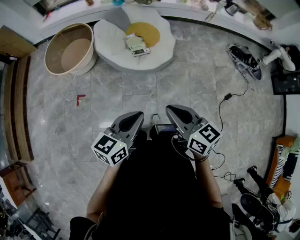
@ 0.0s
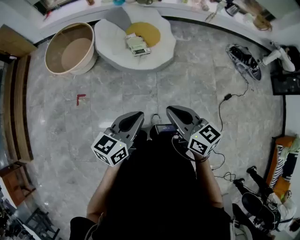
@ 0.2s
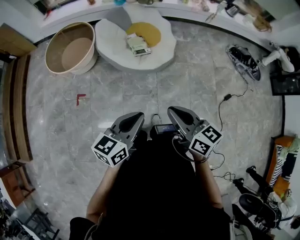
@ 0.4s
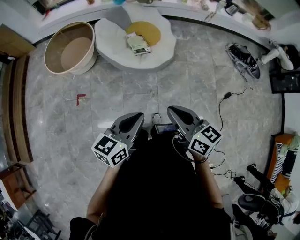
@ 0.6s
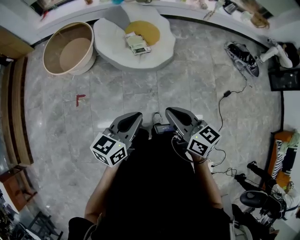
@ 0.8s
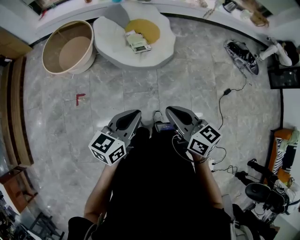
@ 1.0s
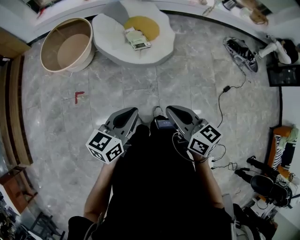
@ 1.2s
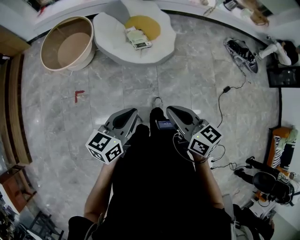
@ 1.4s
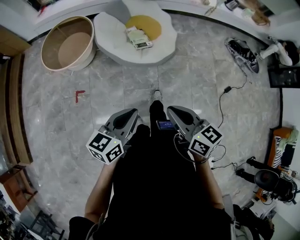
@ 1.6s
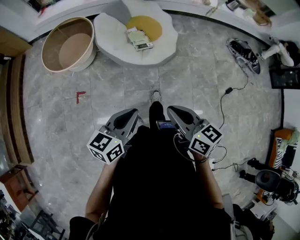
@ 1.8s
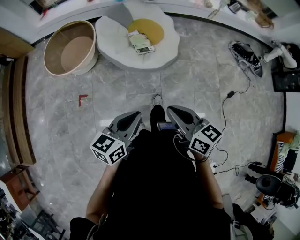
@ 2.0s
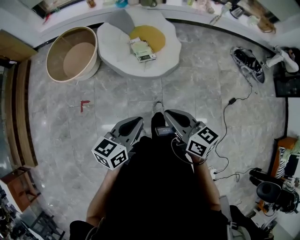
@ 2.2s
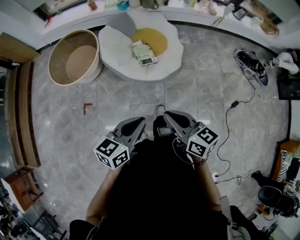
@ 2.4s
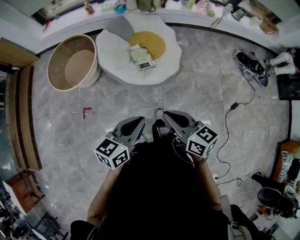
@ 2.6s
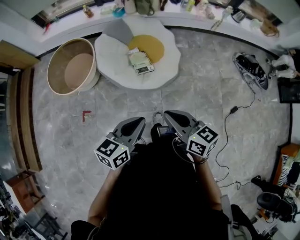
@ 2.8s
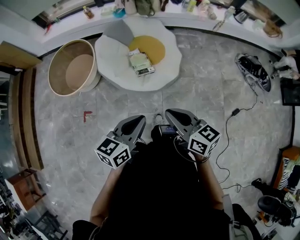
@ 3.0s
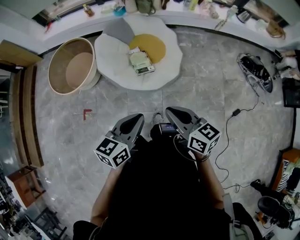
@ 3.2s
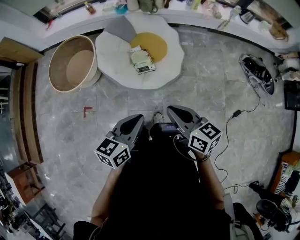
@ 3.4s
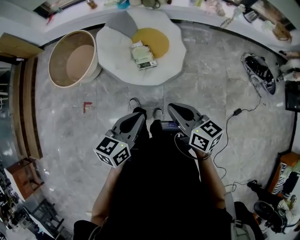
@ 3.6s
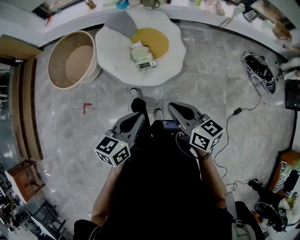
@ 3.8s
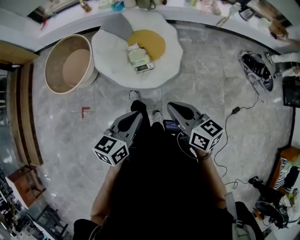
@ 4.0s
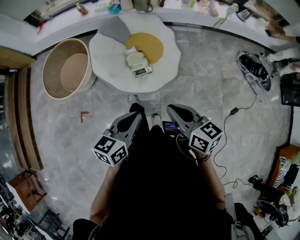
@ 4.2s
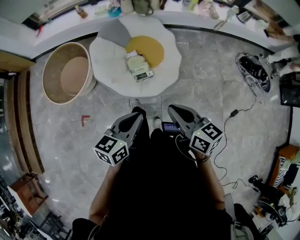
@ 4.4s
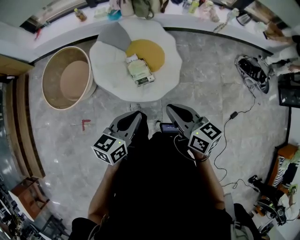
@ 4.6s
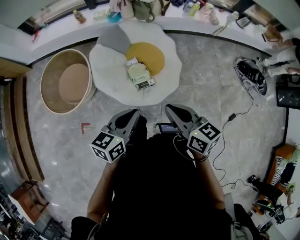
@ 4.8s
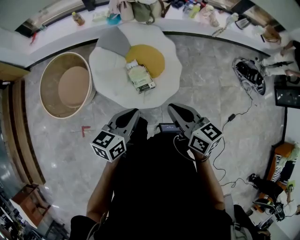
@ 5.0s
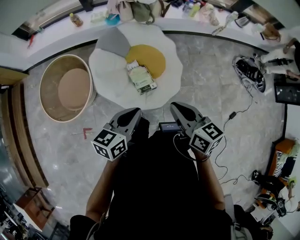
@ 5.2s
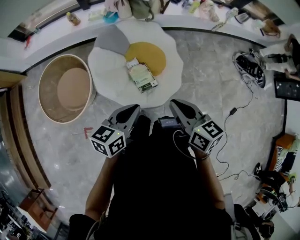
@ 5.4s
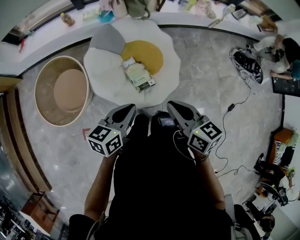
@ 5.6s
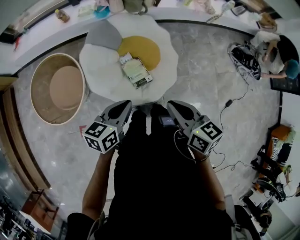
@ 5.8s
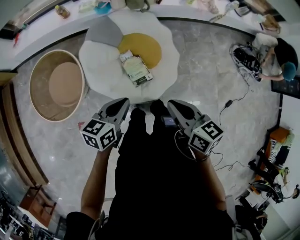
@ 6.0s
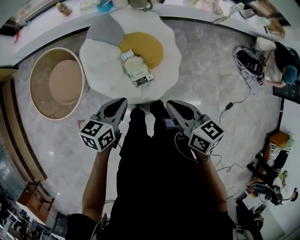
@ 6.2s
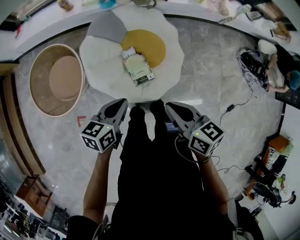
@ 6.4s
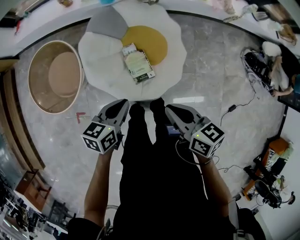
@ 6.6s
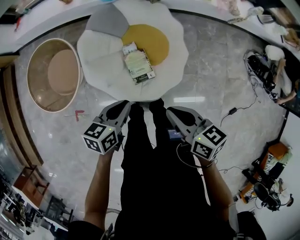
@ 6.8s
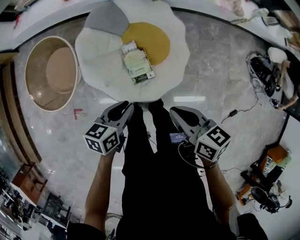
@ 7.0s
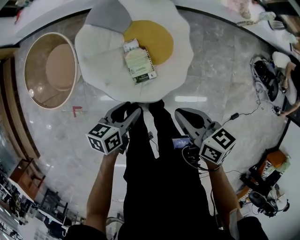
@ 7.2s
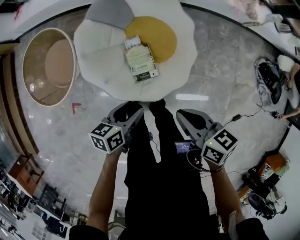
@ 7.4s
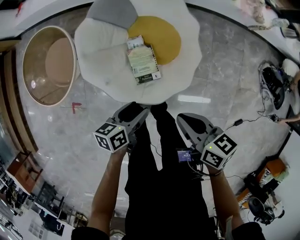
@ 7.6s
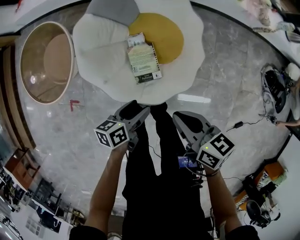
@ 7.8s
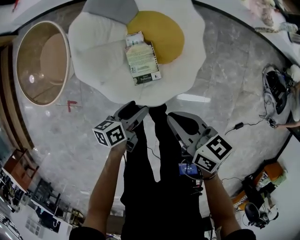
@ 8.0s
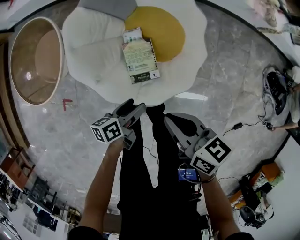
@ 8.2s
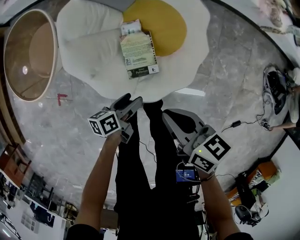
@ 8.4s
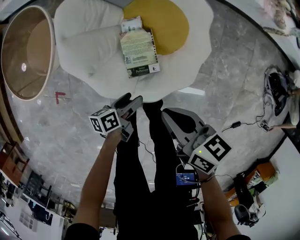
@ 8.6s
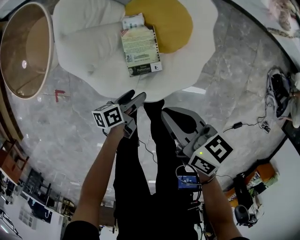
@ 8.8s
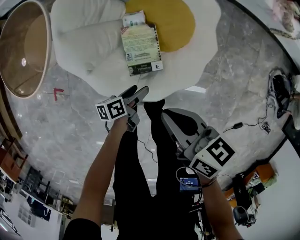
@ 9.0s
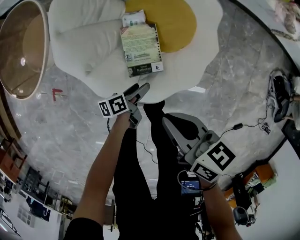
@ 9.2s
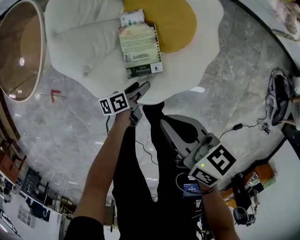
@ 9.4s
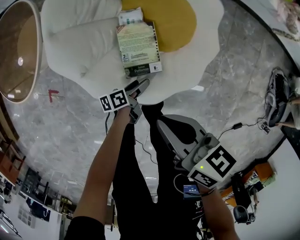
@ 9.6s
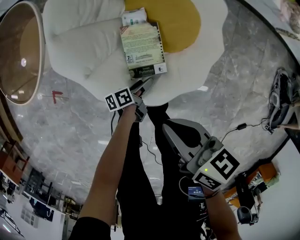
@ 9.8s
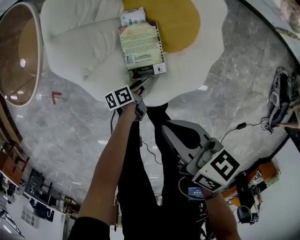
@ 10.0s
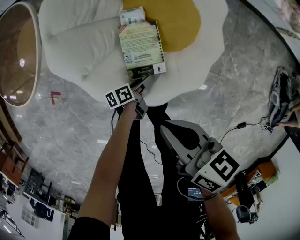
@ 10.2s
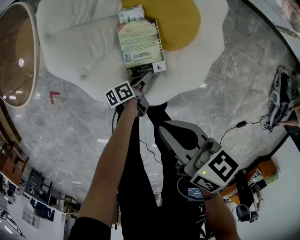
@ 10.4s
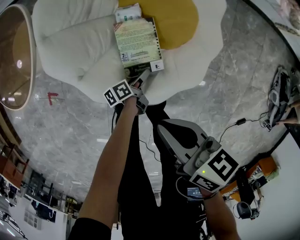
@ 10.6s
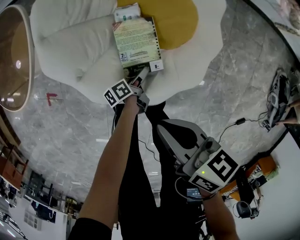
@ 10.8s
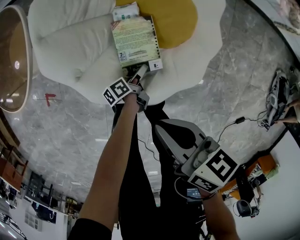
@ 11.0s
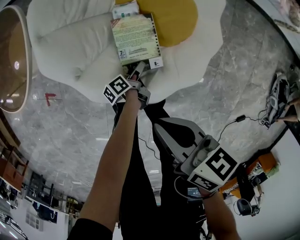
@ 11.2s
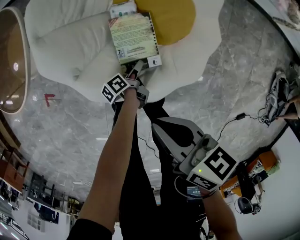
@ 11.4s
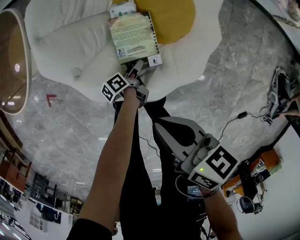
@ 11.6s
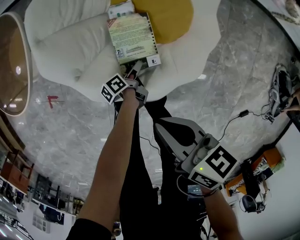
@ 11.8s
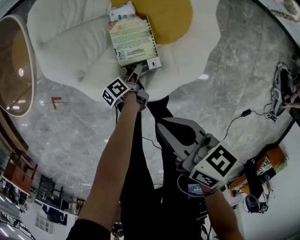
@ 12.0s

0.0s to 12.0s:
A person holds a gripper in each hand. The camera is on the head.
0.0s to 1.6s: The right gripper ends up approximately 10 cm from where it was.
1.6s to 3.0s: The right gripper ends up approximately 25 cm from where it was.
3.0s to 4.4s: The right gripper moves roughly 15 cm.
4.4s to 6.0s: The right gripper shifts by about 20 cm.
6.0s to 7.6s: The right gripper moves downward, about 15 cm, and rotates about 20 degrees.
7.6s to 9.0s: The right gripper travels downward by some 15 cm.

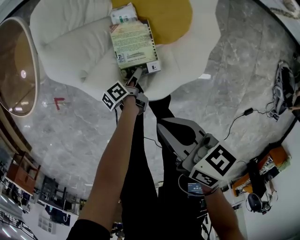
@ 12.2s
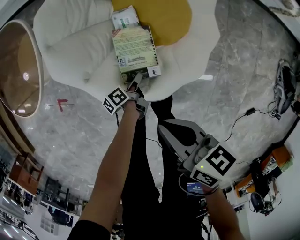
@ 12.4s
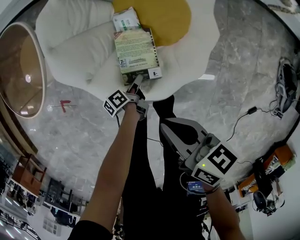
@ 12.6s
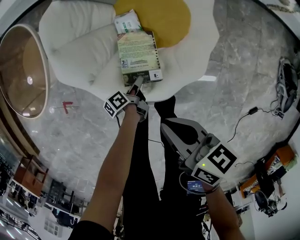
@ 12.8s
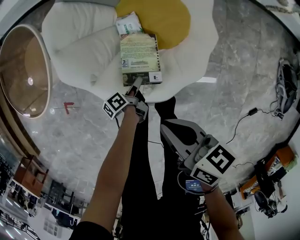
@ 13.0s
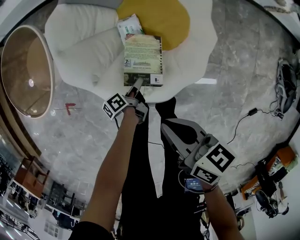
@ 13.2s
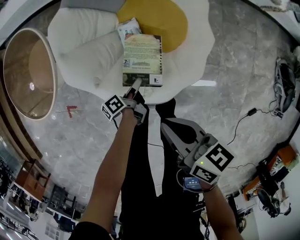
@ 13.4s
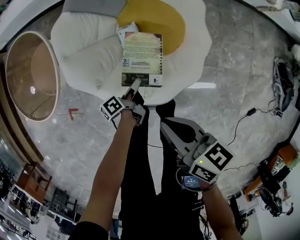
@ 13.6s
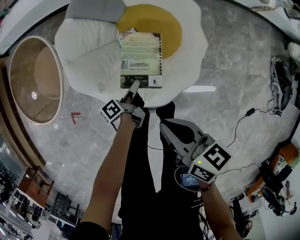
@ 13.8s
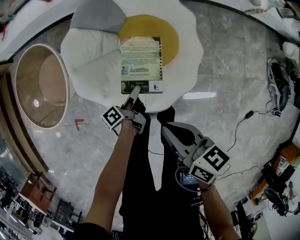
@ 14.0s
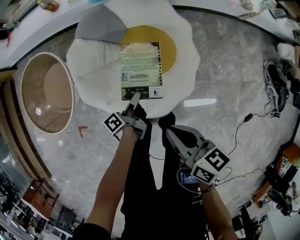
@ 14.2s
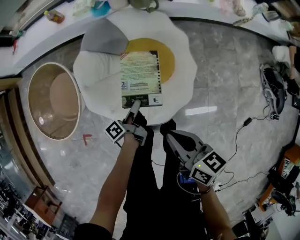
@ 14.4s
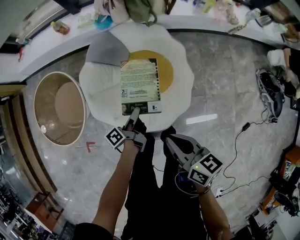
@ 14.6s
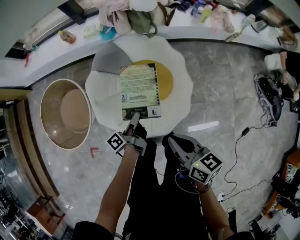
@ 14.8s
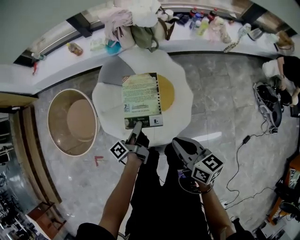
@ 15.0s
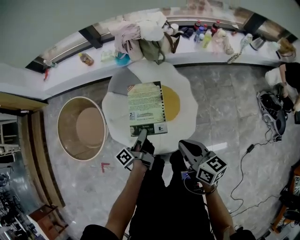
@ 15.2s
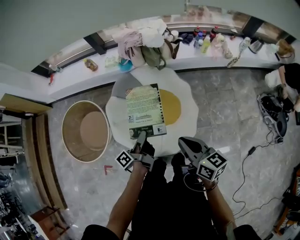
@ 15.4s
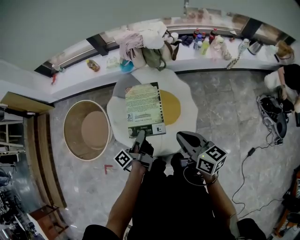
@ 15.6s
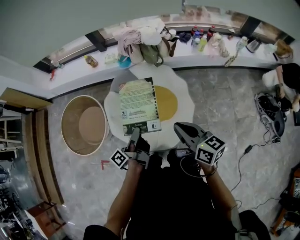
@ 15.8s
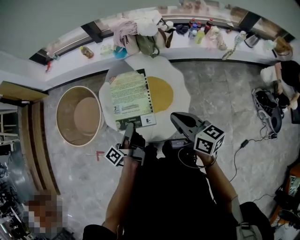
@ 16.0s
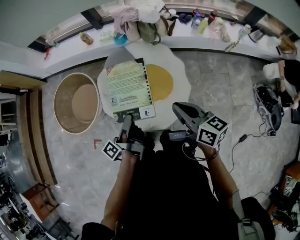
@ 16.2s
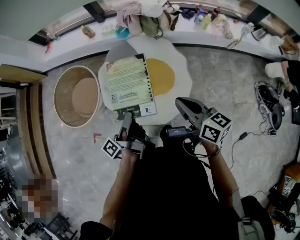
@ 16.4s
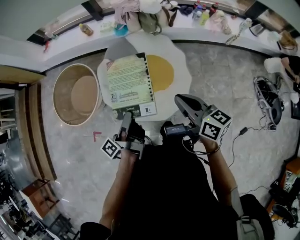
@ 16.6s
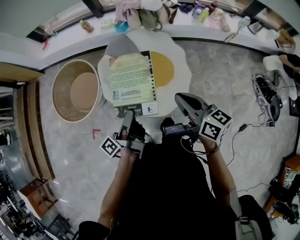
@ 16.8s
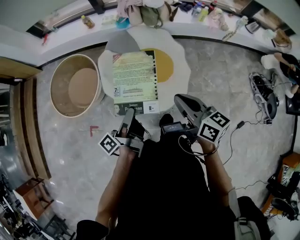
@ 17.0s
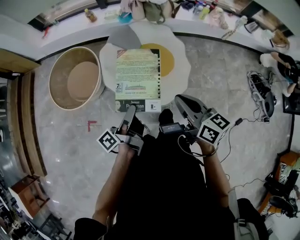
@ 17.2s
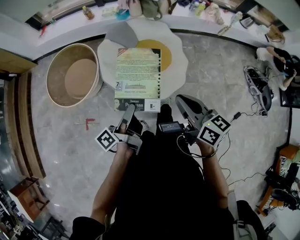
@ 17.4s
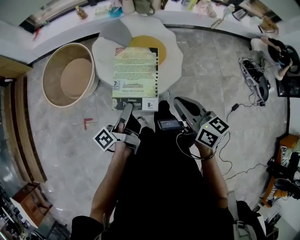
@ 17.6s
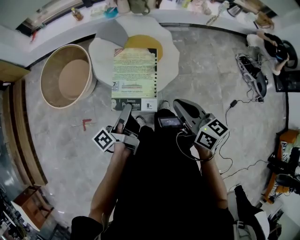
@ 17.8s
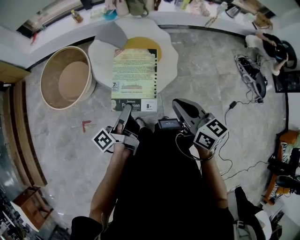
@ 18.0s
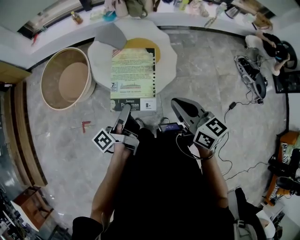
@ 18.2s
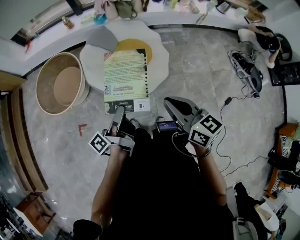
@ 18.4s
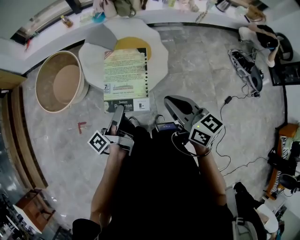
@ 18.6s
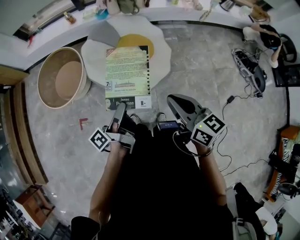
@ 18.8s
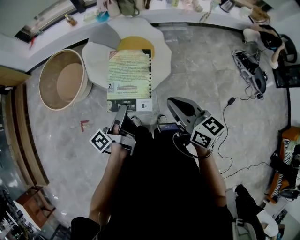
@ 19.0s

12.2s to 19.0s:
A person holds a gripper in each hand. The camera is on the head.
12.2s to 13.6s: The right gripper moves upward, approximately 5 cm.
13.6s to 15.0s: The right gripper heads upward, covering some 20 cm.
15.0s to 16.2s: The right gripper heads upward, covering some 10 cm.
16.2s to 17.6s: The right gripper moves roughly 30 cm.

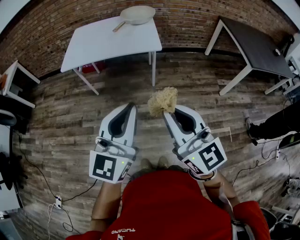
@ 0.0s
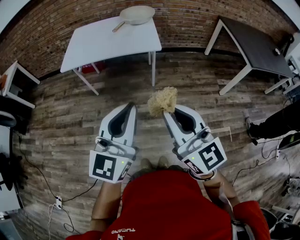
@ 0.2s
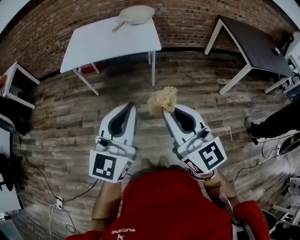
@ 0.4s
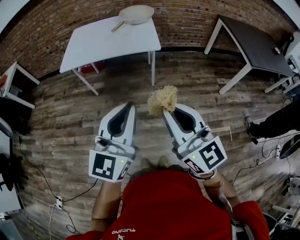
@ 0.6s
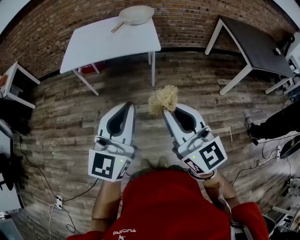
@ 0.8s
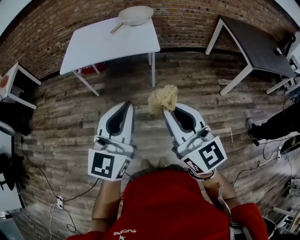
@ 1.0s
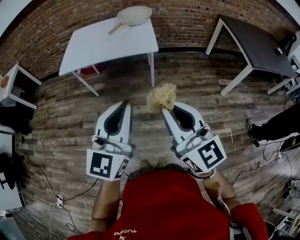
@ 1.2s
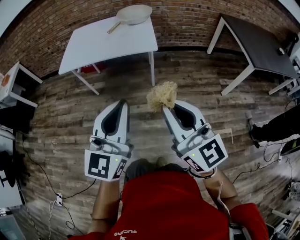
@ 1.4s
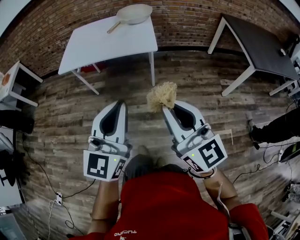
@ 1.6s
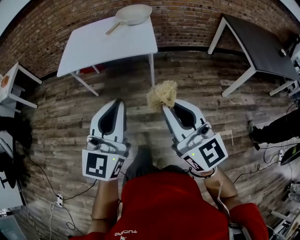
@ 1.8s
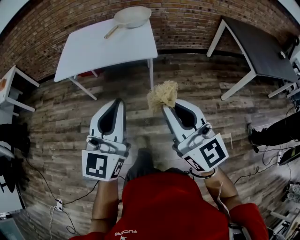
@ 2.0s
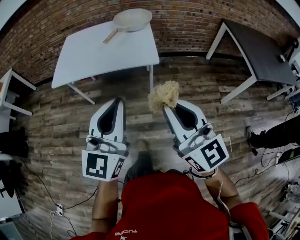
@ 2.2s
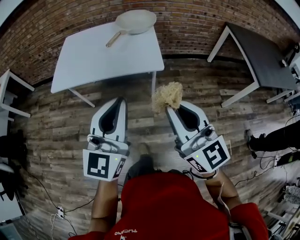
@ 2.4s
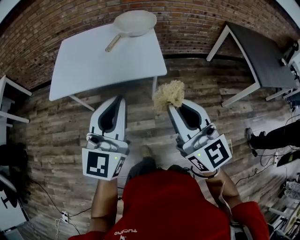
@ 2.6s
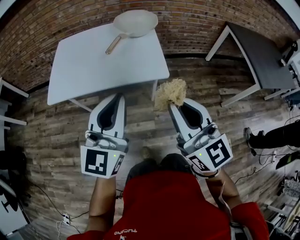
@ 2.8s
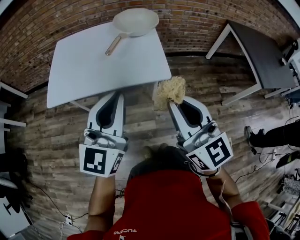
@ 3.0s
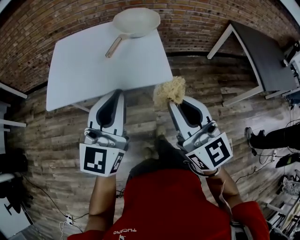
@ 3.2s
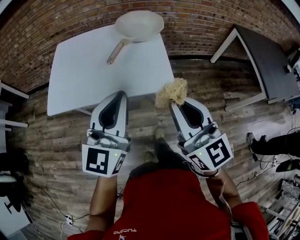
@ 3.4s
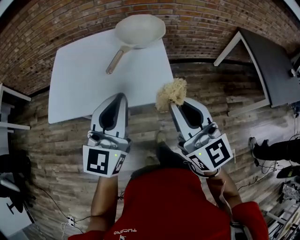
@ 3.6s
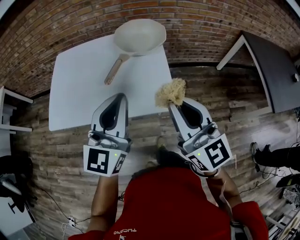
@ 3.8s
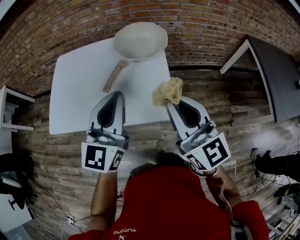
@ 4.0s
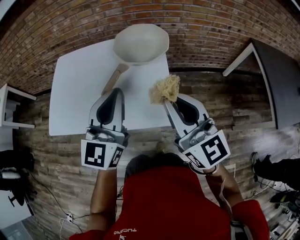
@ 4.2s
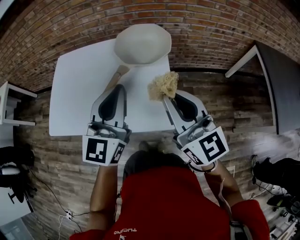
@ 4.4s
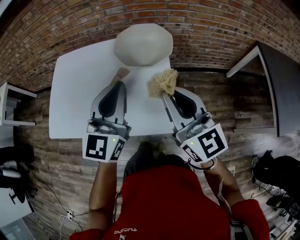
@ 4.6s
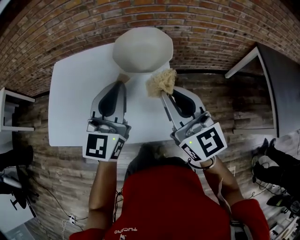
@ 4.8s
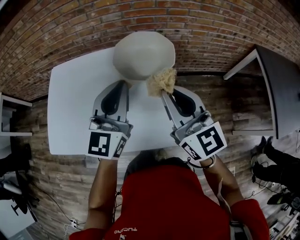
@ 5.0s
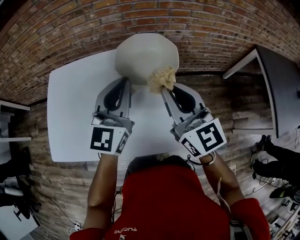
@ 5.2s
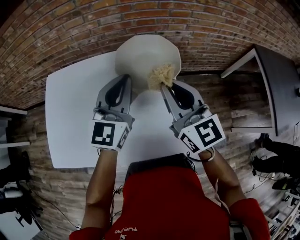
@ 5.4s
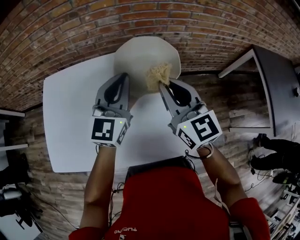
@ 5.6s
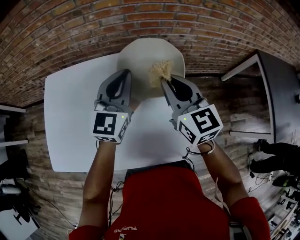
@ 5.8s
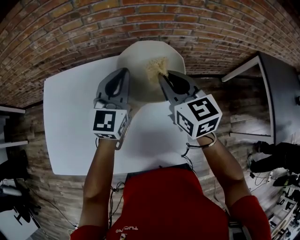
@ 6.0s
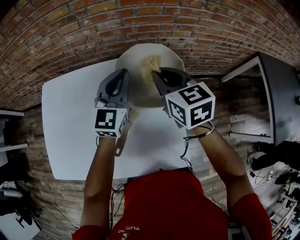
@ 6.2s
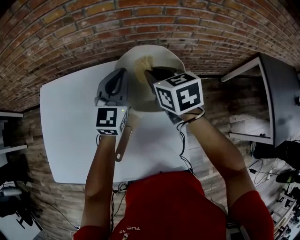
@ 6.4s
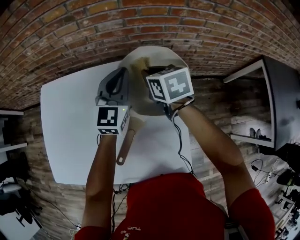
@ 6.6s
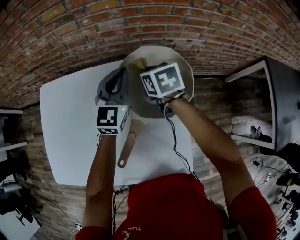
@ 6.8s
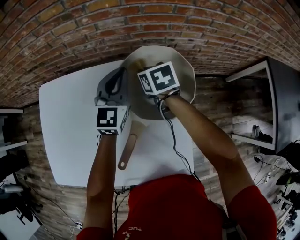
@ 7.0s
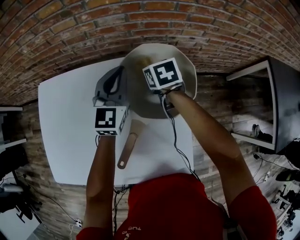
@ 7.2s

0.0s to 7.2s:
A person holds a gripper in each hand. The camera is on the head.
0.0s to 1.4s: The left gripper moves some 5 cm. Meanwhile the right gripper heads to the right, covering some 5 cm.
1.4s to 2.8s: Both grippers move forward, some 30 cm.
2.8s to 4.4s: Both grippers move forward, approximately 35 cm.
4.4s to 5.8s: The grippers both shift forward by roughly 25 cm.
5.8s to 7.2s: The left gripper travels forward and downward by roughly 15 cm. Meanwhile the right gripper moves forward and downward, some 30 cm, and points its fingers approximately 40 degrees further downward.
